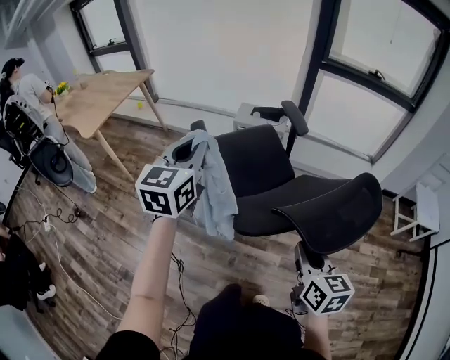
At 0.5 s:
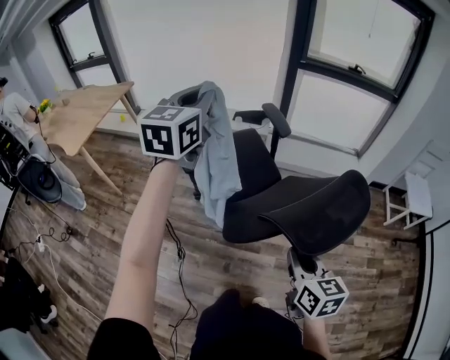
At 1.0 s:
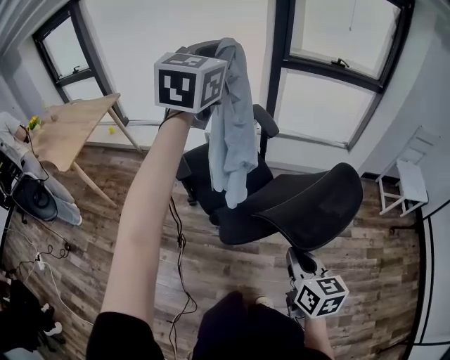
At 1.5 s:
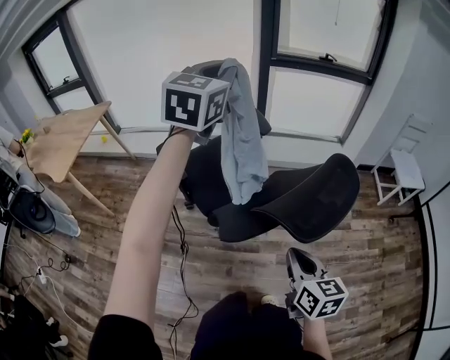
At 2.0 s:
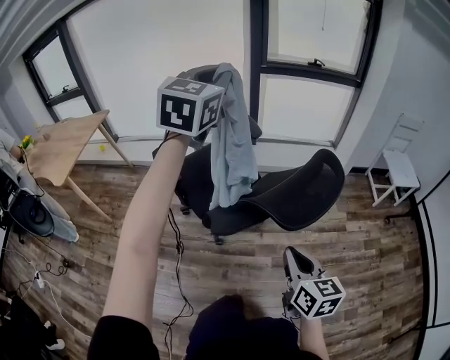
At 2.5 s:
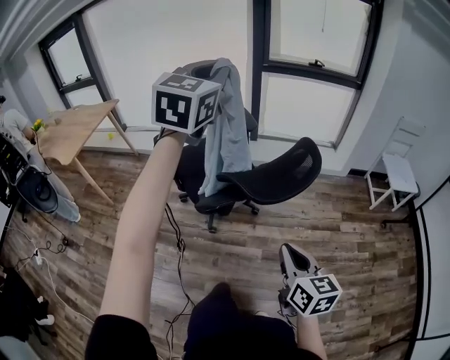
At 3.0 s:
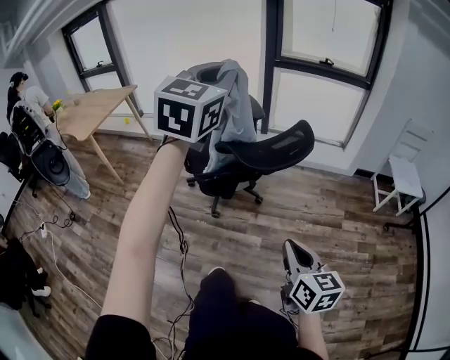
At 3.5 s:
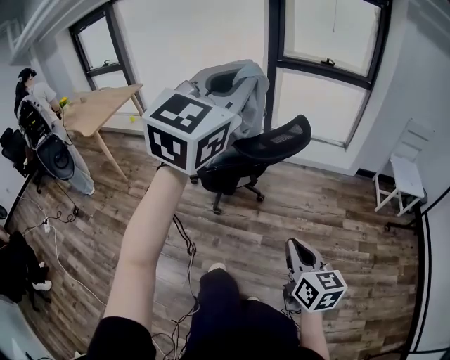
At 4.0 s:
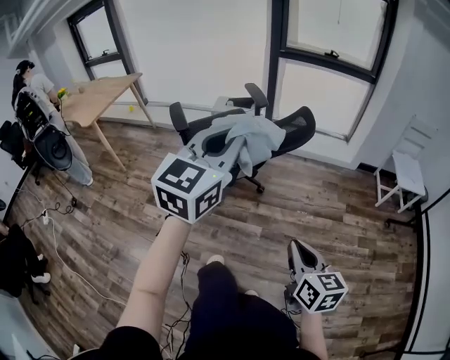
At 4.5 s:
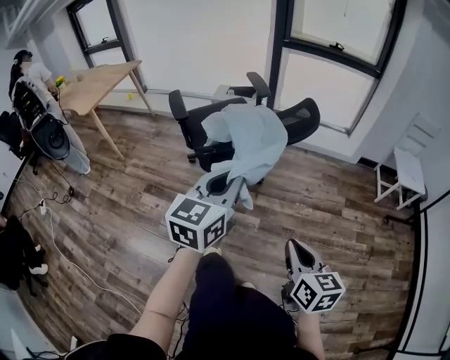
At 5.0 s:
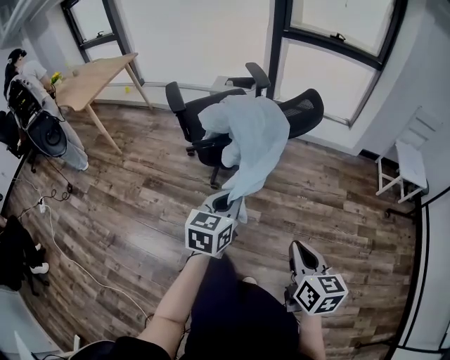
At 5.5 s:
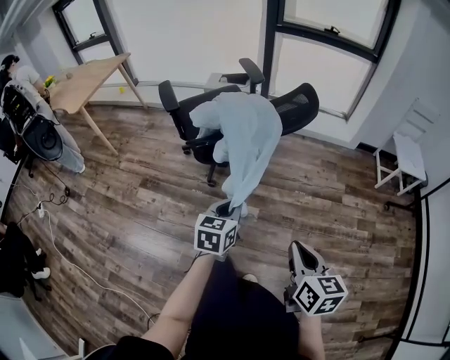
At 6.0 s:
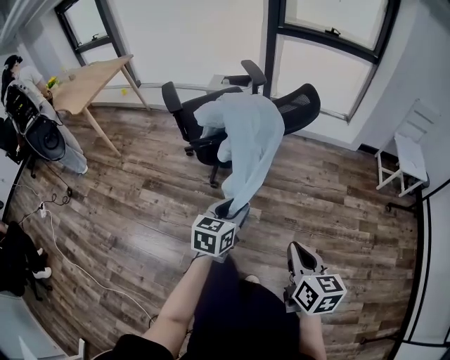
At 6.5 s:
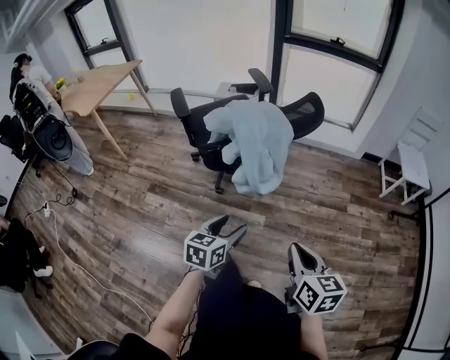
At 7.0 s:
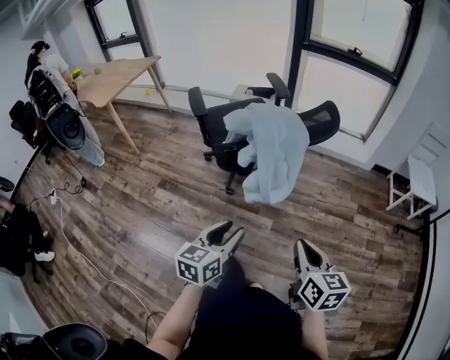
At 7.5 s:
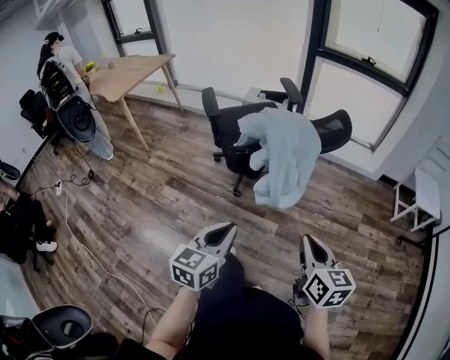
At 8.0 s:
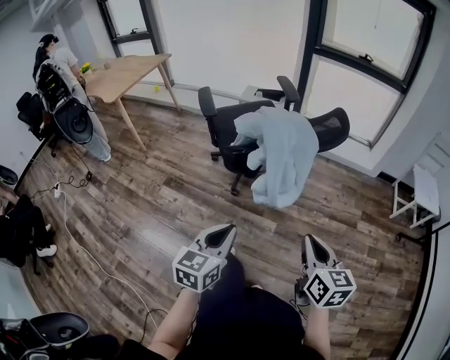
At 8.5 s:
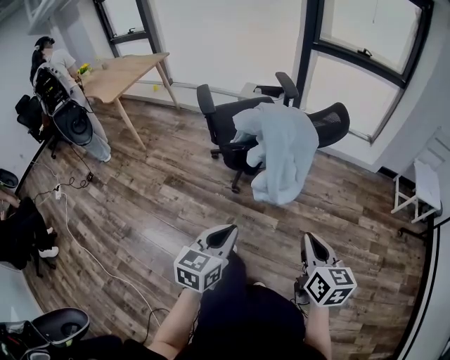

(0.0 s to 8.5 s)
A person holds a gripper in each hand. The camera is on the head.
0.0 s - 2.0 s: The right gripper is displaced backward by roughly 5 cm. The left gripper goes about 25 cm to the right and upward, and rotates about 30 degrees.
2.0 s - 4.0 s: The left gripper travels backward and to the right by about 35 cm. The right gripper goes some 25 cm backward and to the right.
4.0 s - 6.5 s: The left gripper heads downward, covering approximately 35 cm, swivels some 40 degrees, and opens.
6.5 s - 8.5 s: The right gripper shifts by roughly 5 cm. Meanwhile the left gripper is displaced upward and to the left by about 10 cm, and closes its fingers.

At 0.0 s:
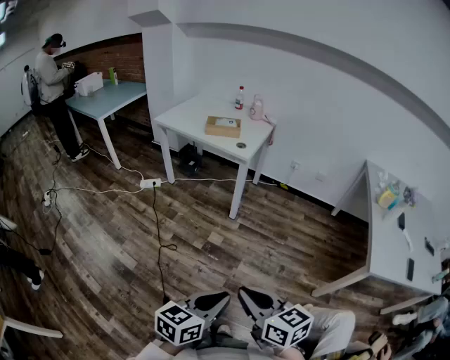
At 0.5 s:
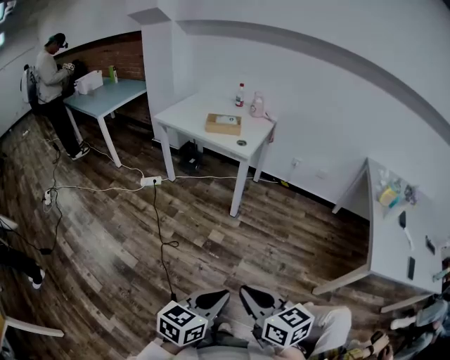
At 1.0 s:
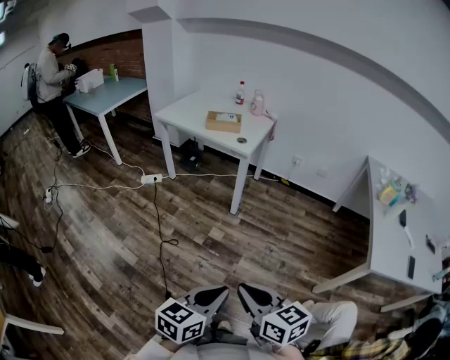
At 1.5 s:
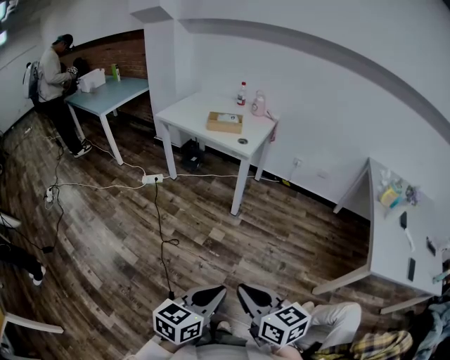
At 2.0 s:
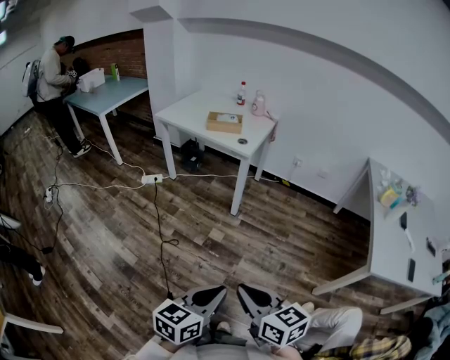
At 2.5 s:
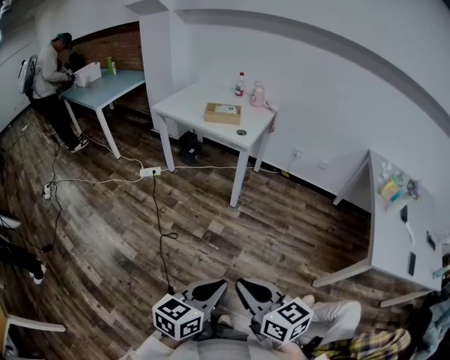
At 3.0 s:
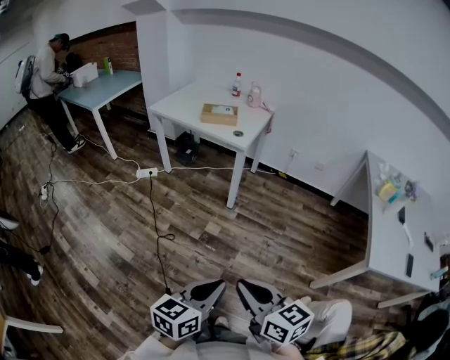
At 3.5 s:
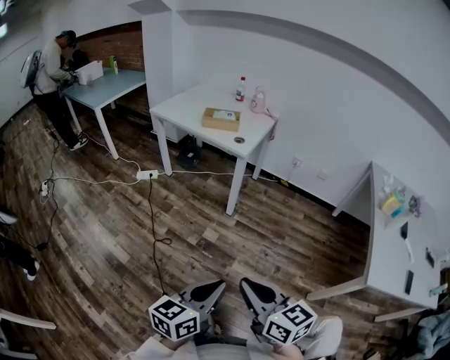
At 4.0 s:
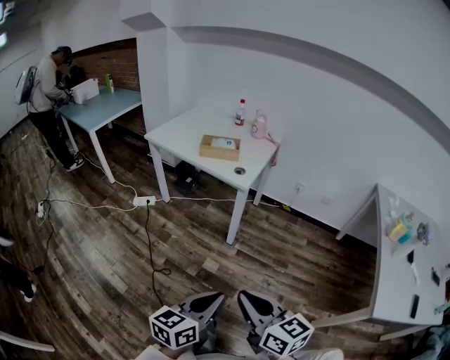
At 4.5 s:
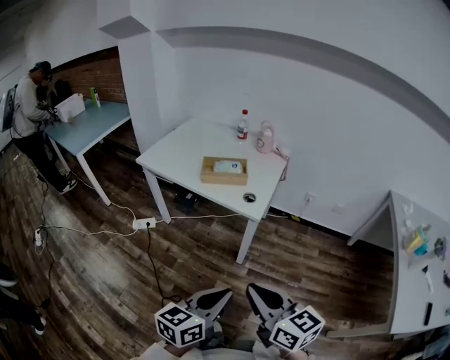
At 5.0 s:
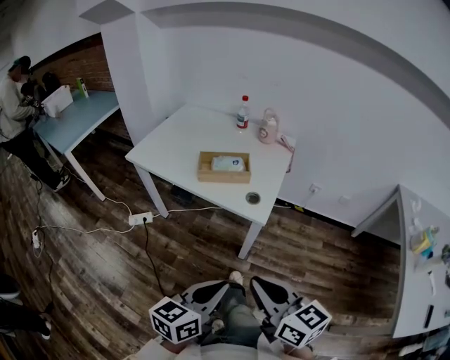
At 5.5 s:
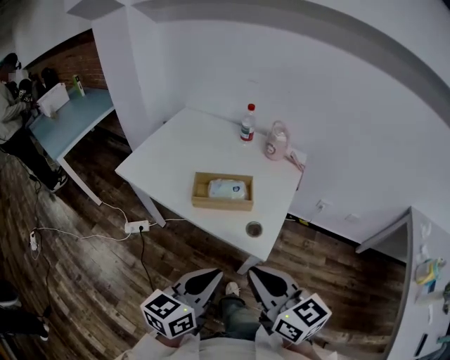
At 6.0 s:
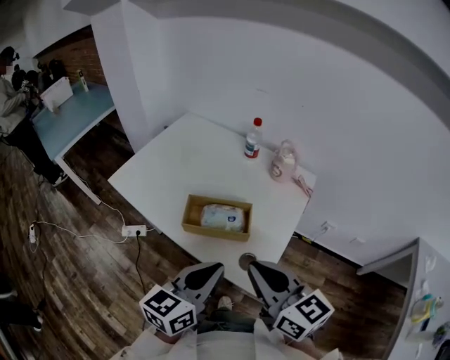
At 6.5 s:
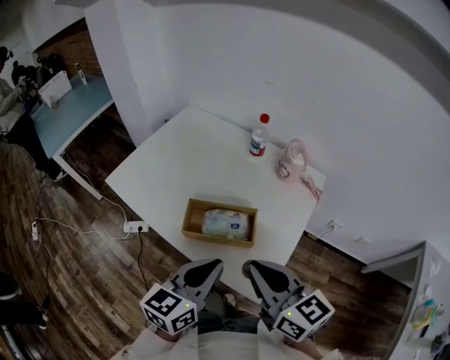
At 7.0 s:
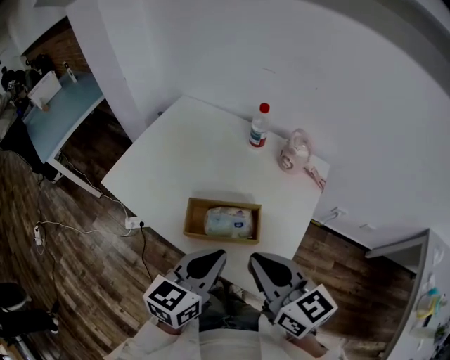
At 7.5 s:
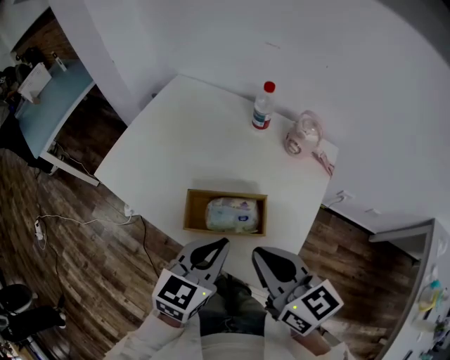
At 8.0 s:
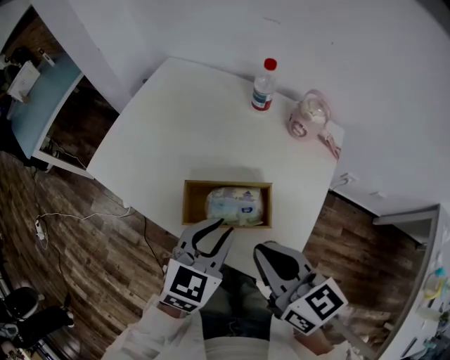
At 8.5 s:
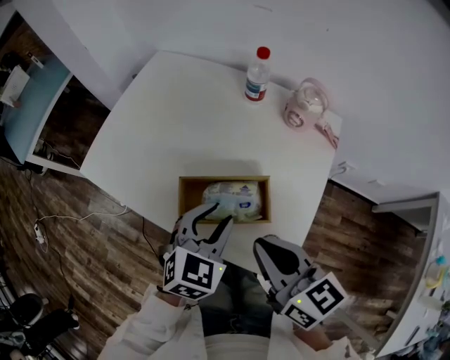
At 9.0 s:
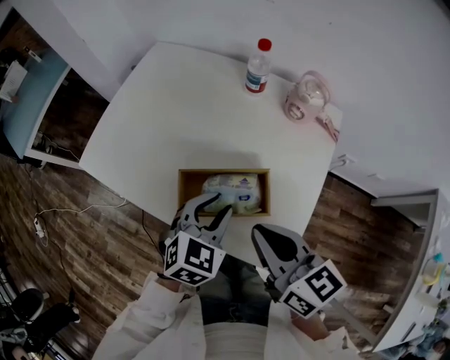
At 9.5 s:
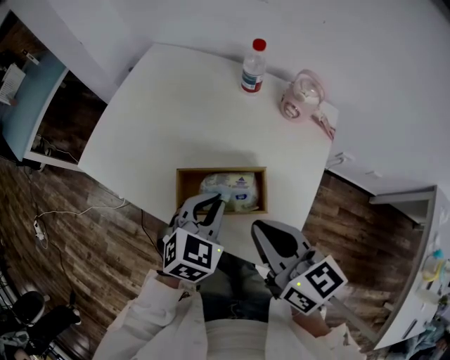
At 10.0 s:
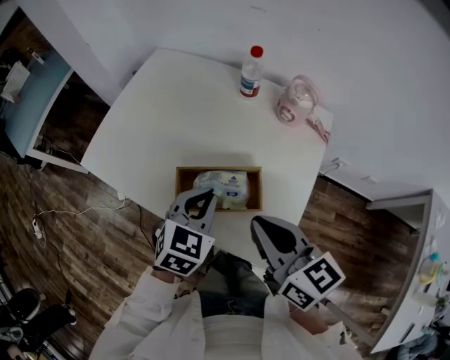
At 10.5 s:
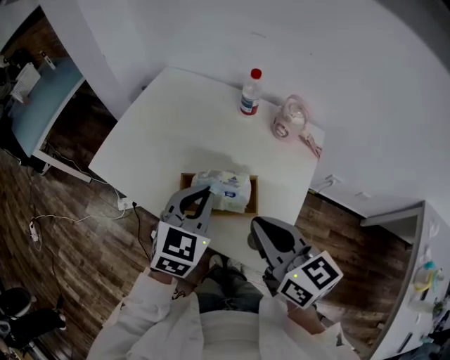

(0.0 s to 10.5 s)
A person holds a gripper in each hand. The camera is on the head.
0.0 s - 2.0 s: The grippers stay close to where they were, moving slightly.
2.0 s - 4.0 s: Both grippers travel together forward, about 20 cm.
4.0 s - 6.5 s: The pair of grippers is taken forward, approximately 60 cm.
6.5 s - 8.5 s: The left gripper travels forward and downward by roughly 15 cm, swivels approximately 40 degrees, and opens up; the right gripper heads downward, covering approximately 5 cm.
8.5 s - 10.5 s: The left gripper is displaced upward by approximately 10 cm, and closes.

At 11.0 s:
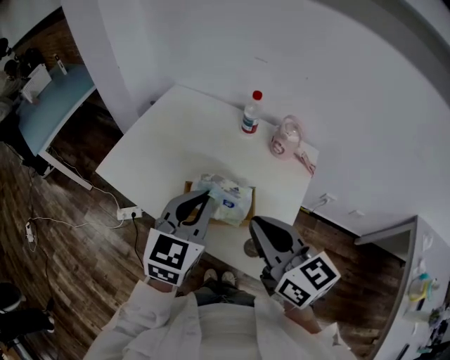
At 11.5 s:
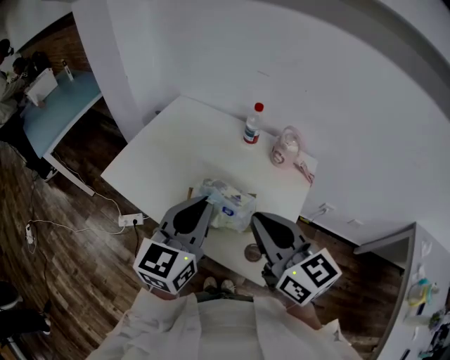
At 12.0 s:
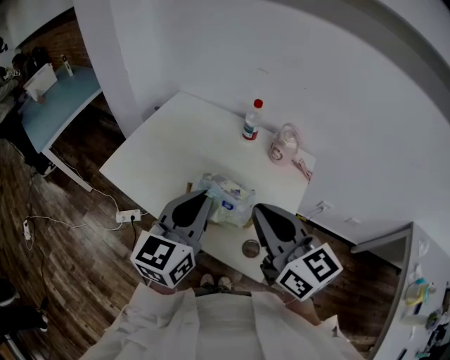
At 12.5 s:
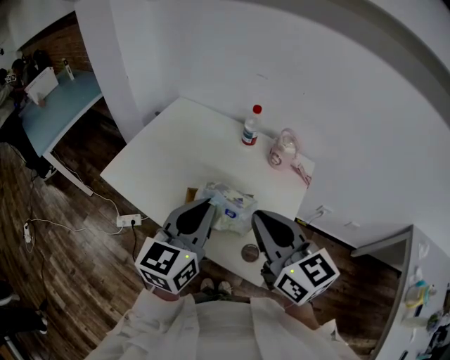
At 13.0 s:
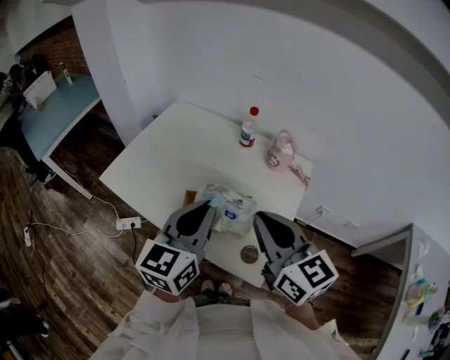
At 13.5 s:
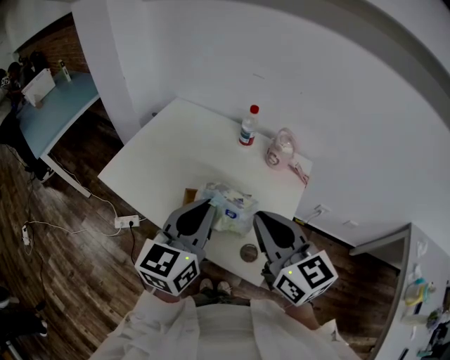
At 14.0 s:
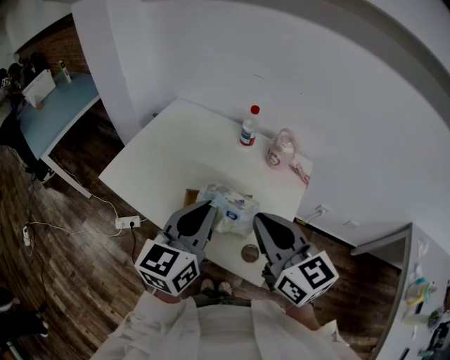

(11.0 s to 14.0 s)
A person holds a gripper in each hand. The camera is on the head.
11.0 s - 12.5 s: The grippers move only a little.
12.5 s - 14.0 s: The two grippers keep their place.

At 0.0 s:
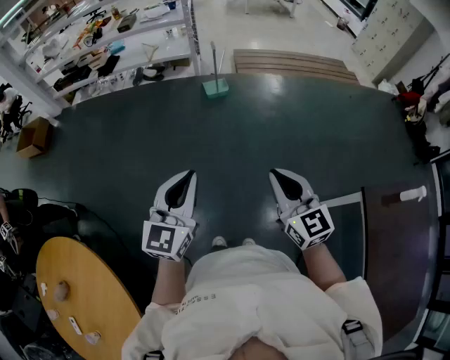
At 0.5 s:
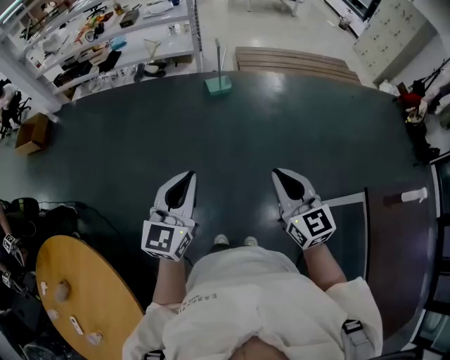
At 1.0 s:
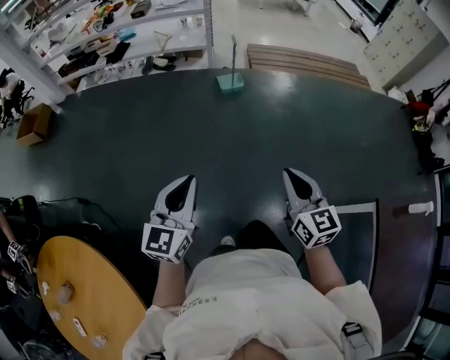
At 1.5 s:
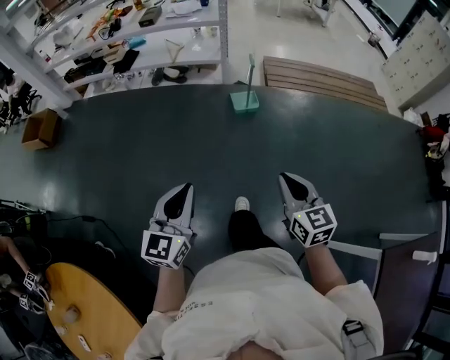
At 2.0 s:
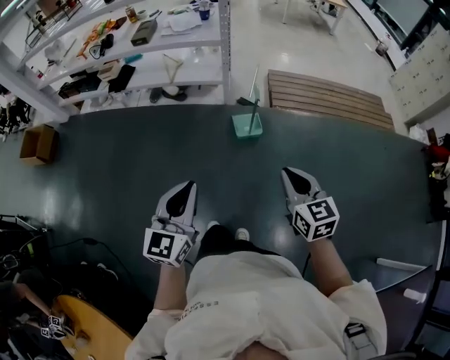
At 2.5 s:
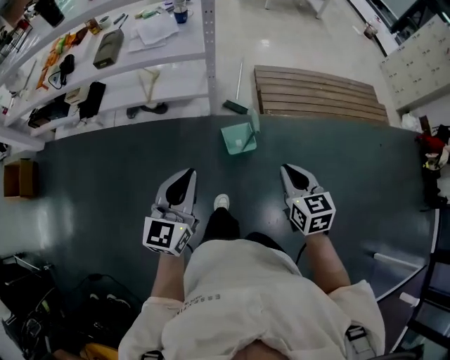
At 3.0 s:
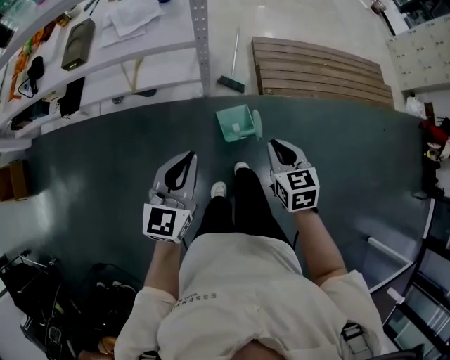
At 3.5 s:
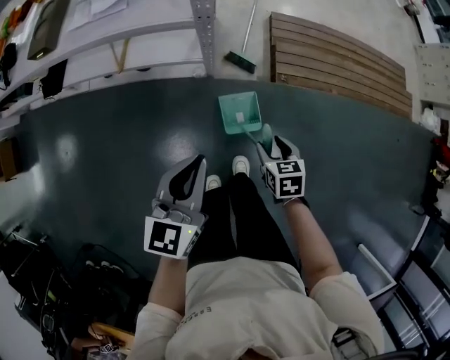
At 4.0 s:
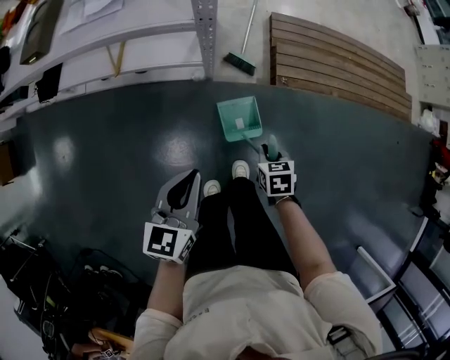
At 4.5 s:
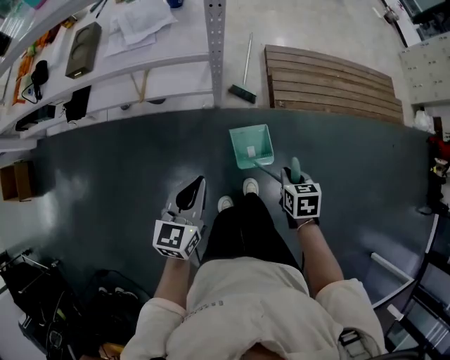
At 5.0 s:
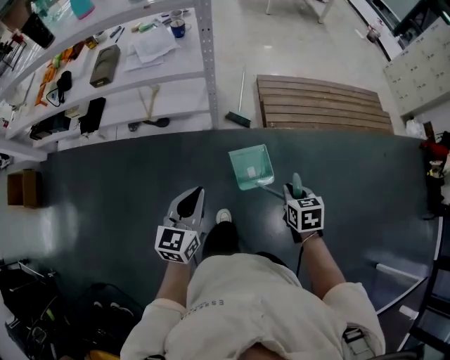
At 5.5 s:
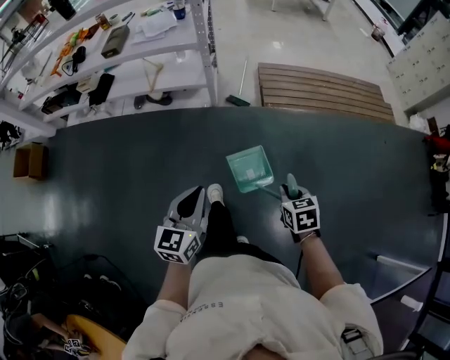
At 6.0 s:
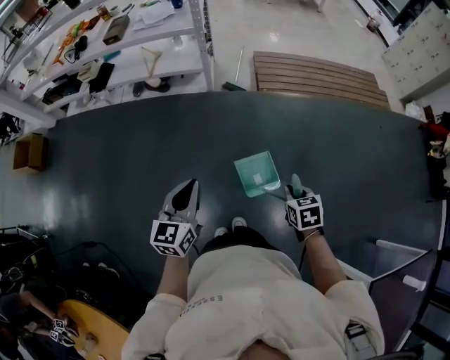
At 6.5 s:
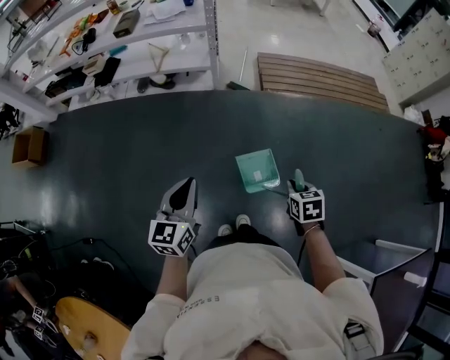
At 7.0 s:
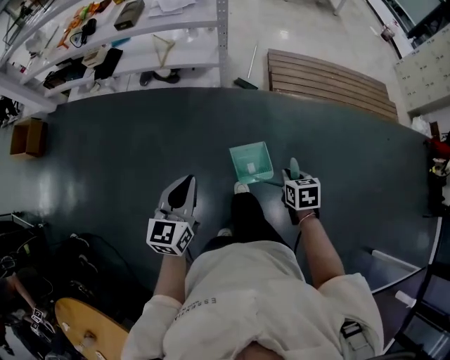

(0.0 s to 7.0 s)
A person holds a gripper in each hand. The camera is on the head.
0.0 s - 2.0 s: Both grippers are carried forward, roughly 50 cm.
2.0 s - 3.5 s: The two grippers travel together, forward, about 50 cm. The right gripper heads downward, covering about 35 cm, tips its fingers downward by some 40 degrees, and opens.
3.5 s - 5.0 s: The right gripper goes roughly 25 cm backward and upward, and closes up, while the left gripper heads backward, covering about 20 cm.
5.0 s - 7.0 s: Both grippers travel together backward, some 25 cm.
